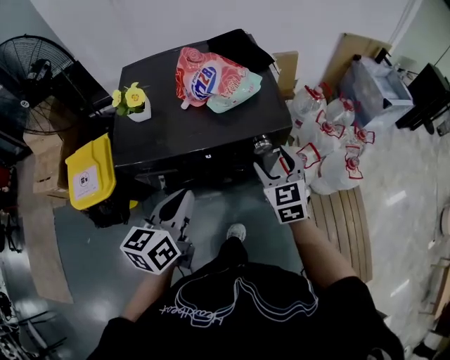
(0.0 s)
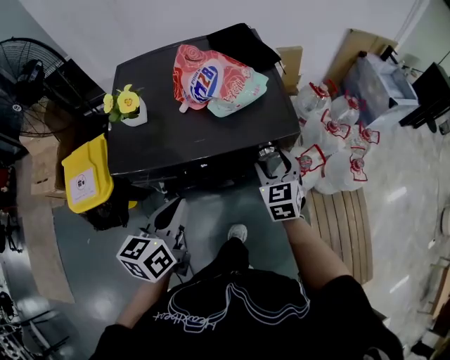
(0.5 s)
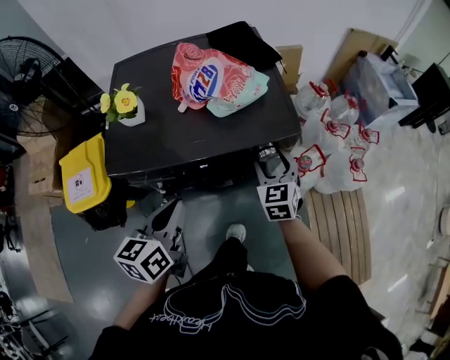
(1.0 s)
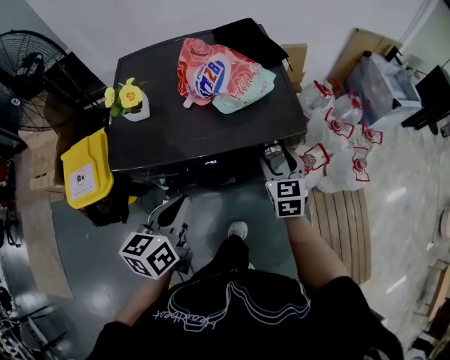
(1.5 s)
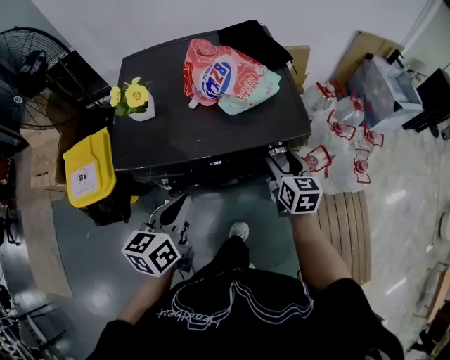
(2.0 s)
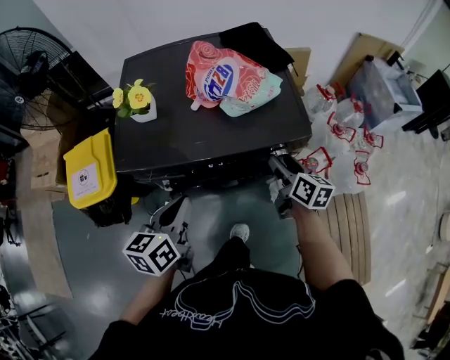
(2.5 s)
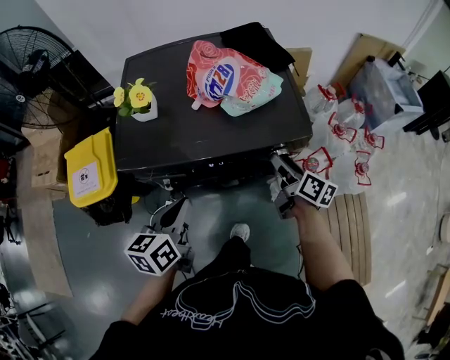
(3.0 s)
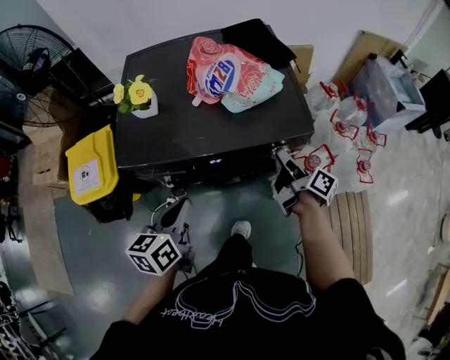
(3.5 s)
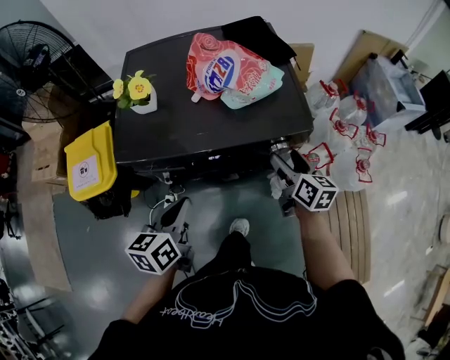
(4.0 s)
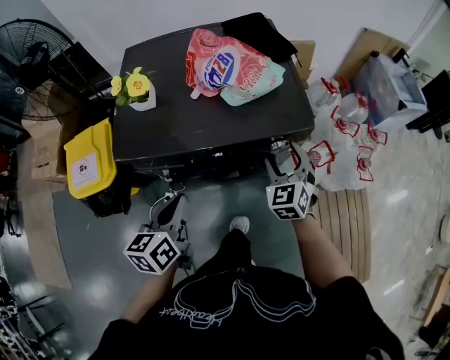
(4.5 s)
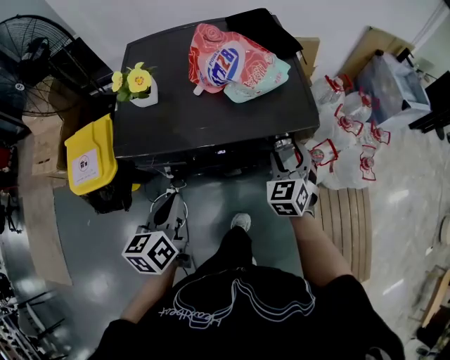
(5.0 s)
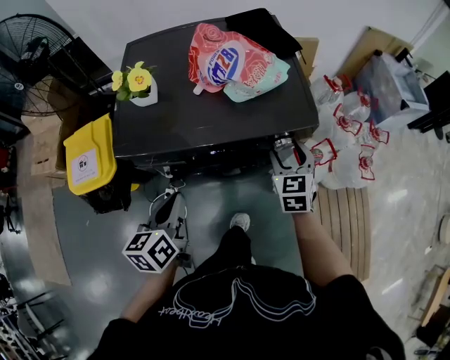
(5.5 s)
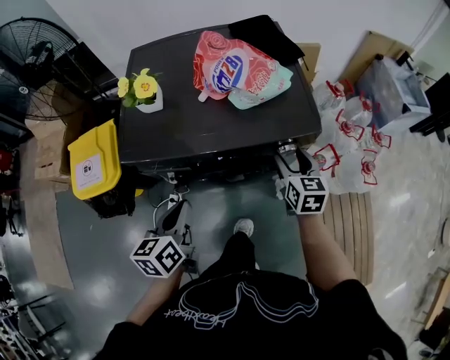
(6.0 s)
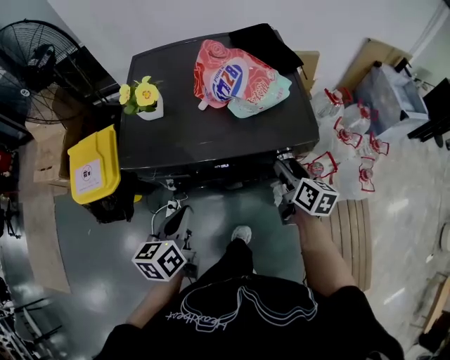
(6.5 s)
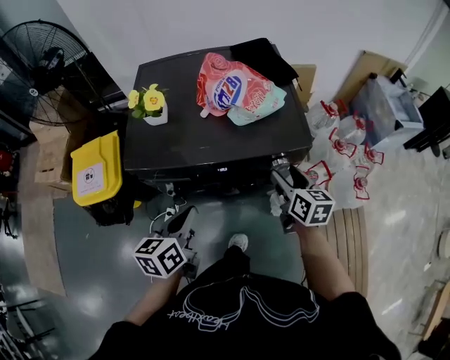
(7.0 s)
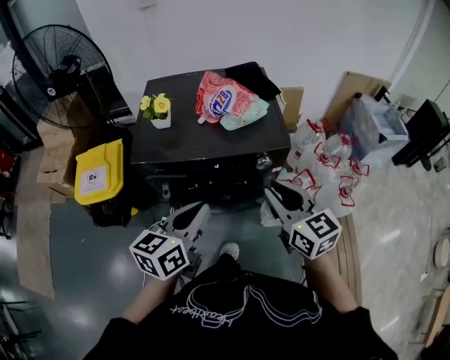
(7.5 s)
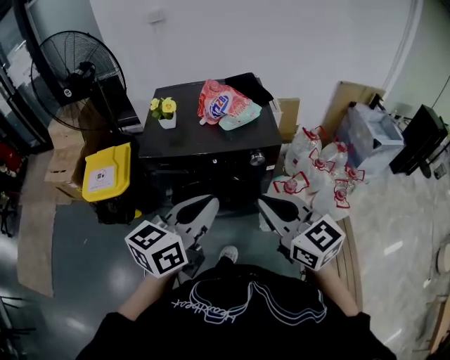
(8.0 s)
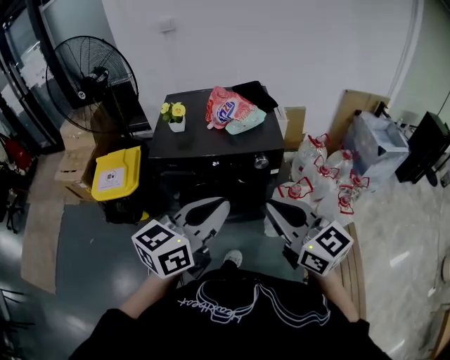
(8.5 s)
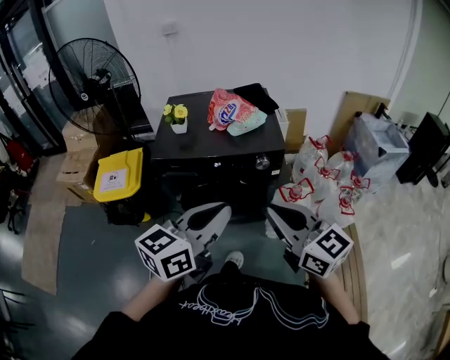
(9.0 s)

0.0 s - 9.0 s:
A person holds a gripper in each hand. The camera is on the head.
0.0 s - 2.0 s: The right gripper travels downward and forward by approximately 10 cm, and turns by roughly 30 degrees. Meanwhile the left gripper goes some 5 cm downward.
2.0 s - 4.5 s: The right gripper rolls counterclockwise, seen from behind, by roughly 40 degrees.
4.5 s - 7.0 s: The right gripper rolls clockwise, seen from behind, by some 50 degrees.
7.0 s - 9.0 s: The left gripper is displaced upward, backward and to the right by approximately 35 cm, and rotates approximately 30 degrees; the right gripper is displaced backward and upward by approximately 40 cm, changes its angle by approximately 40 degrees, and closes up.

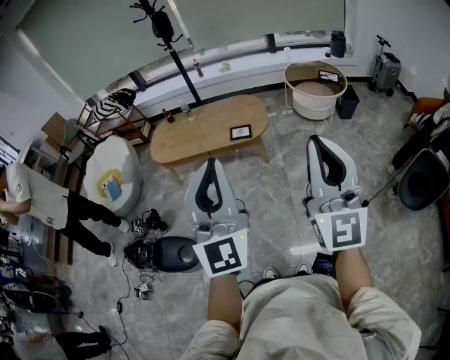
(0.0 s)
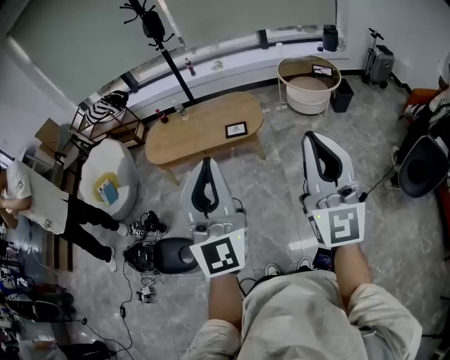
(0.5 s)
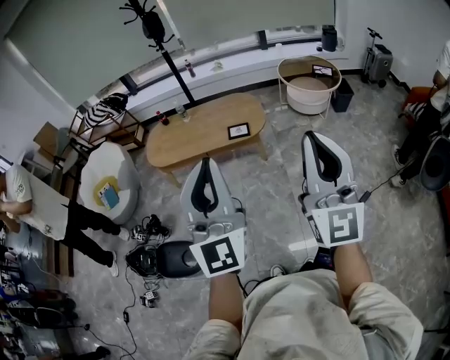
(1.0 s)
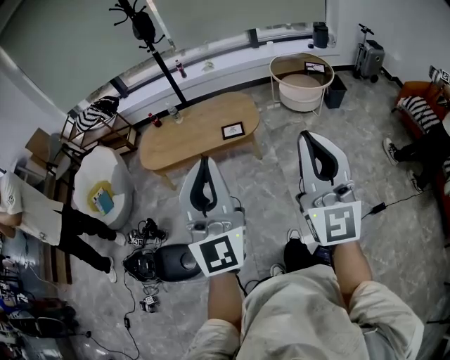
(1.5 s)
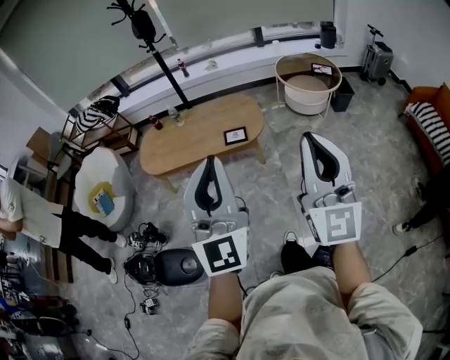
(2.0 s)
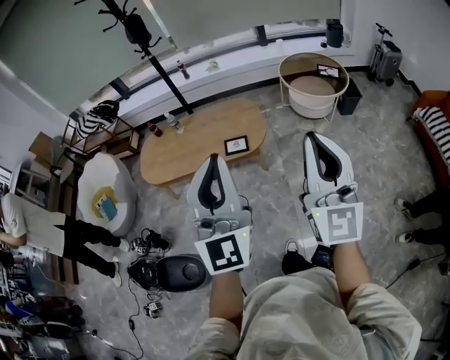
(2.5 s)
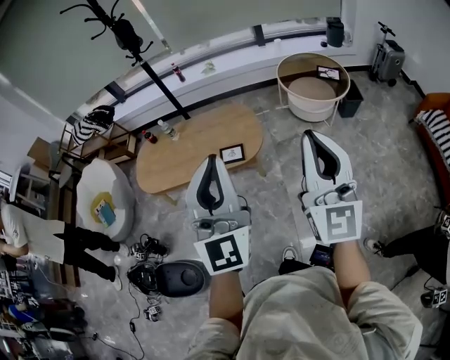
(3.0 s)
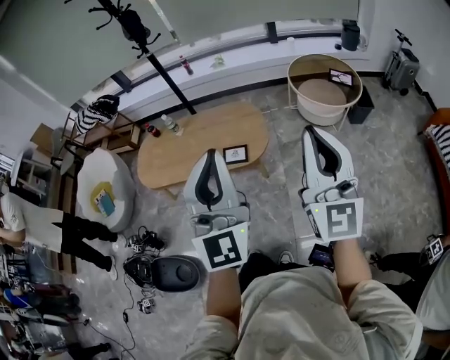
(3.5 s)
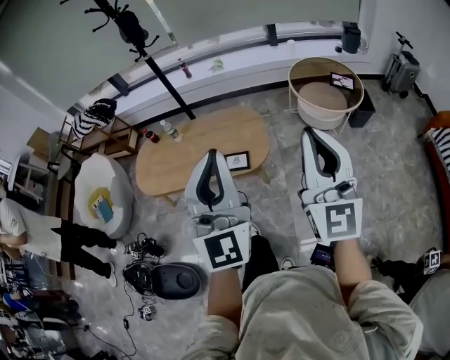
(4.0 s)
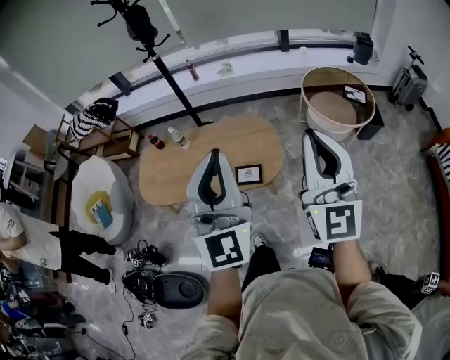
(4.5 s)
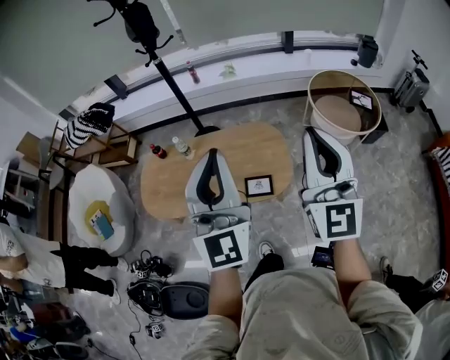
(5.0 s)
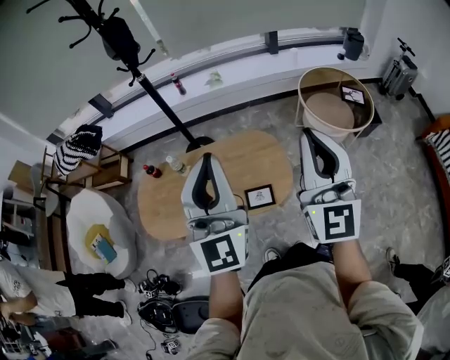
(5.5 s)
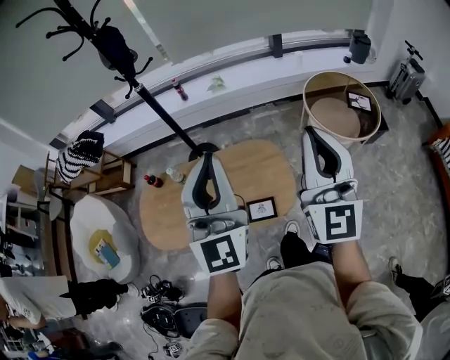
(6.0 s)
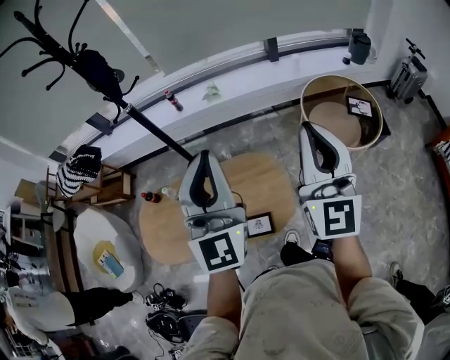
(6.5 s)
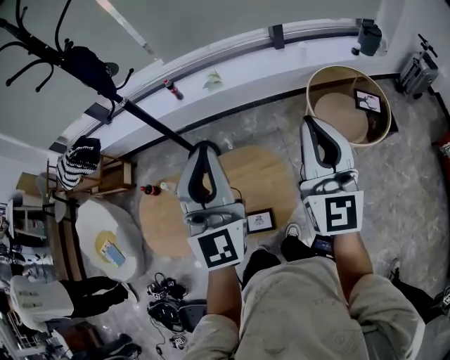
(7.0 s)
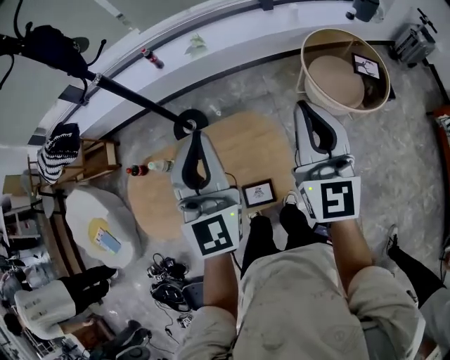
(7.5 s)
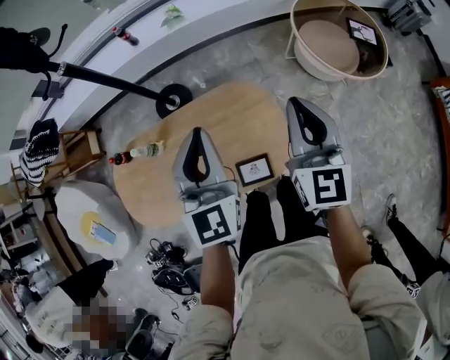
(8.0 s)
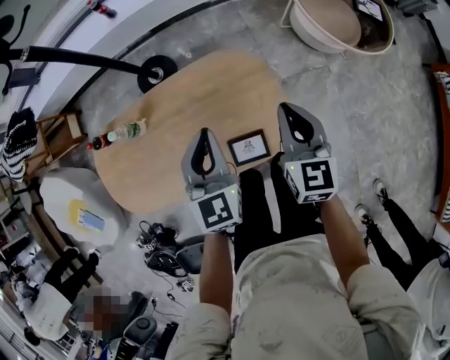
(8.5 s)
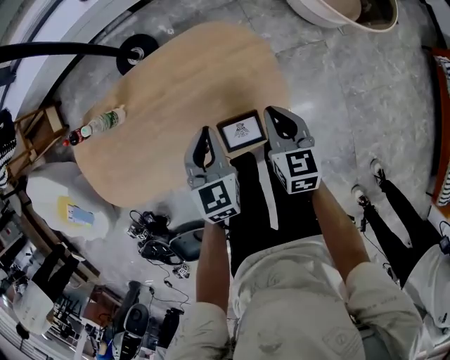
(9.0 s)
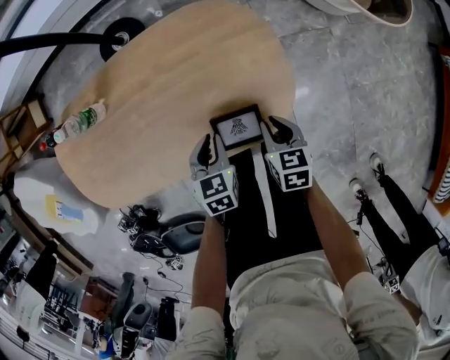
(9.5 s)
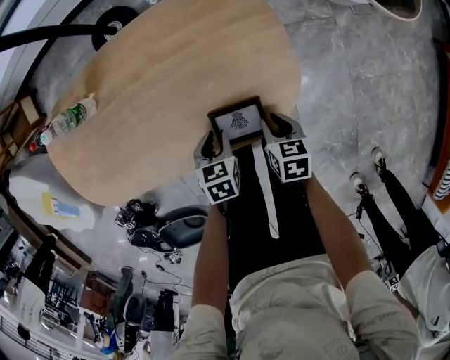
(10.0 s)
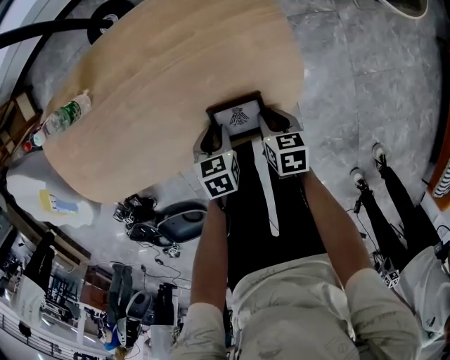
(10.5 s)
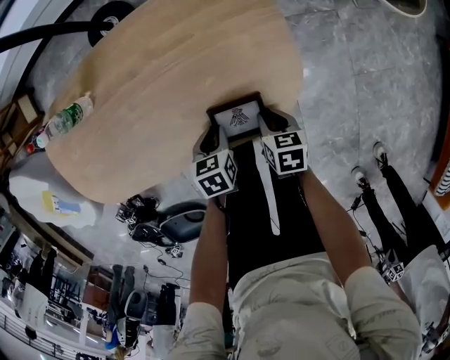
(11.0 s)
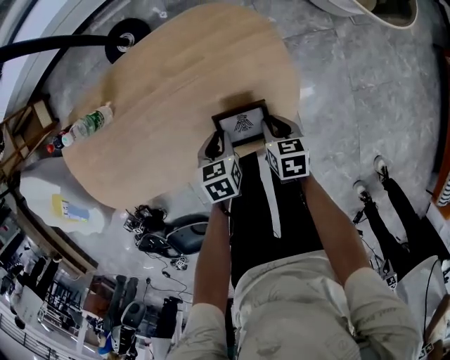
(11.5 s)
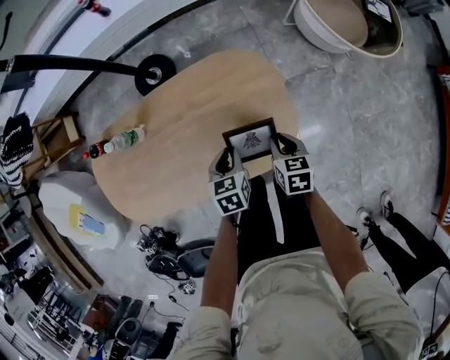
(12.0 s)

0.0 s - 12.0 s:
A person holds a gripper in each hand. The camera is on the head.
0.0 s - 2.0 s: The grippers both shift forward by roughly 10 cm.
2.0 s - 4.0 s: Both grippers travel together forward, approximately 30 cm.
4.0 s - 6.0 s: The right gripper is displaced forward by roughly 30 cm; the left gripper is displaced forward and to the left by some 35 cm.
6.0 s - 8.0 s: Both grippers travel together downward and forward, approximately 30 cm. The left gripper rotates approximately 30 degrees; the right gripper rotates approximately 30 degrees.
8.0 s - 10.0 s: Both grippers travel together downward, some 50 cm. The left gripper angles its fingers downward, by roughly 50 degrees, and opens its fingers; the right gripper points its fingers some 50 degrees further downward, and opens.
10.0 s - 12.0 s: The two grippers go about 15 cm upward and forward.

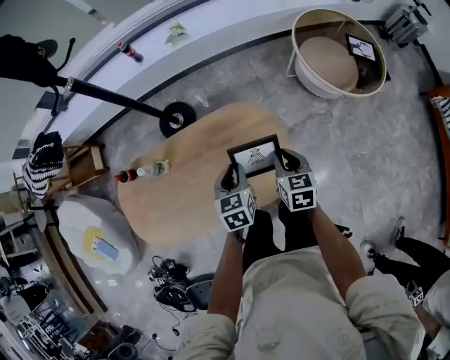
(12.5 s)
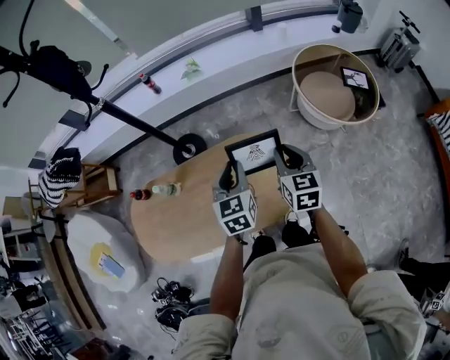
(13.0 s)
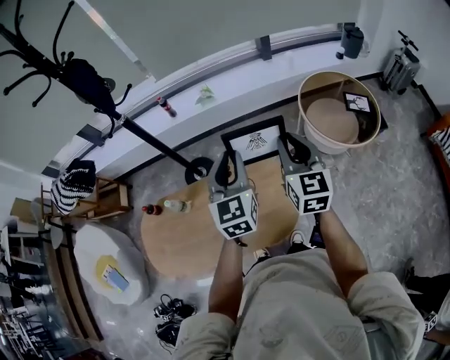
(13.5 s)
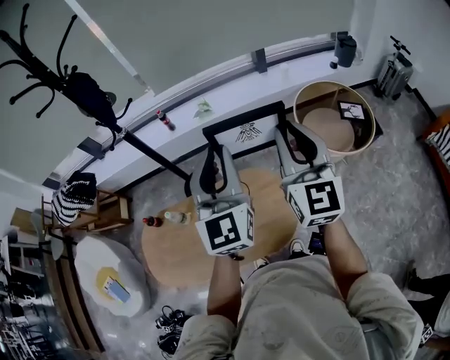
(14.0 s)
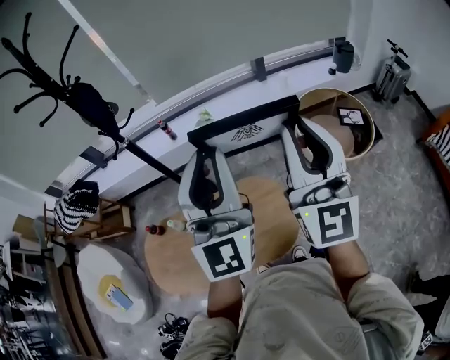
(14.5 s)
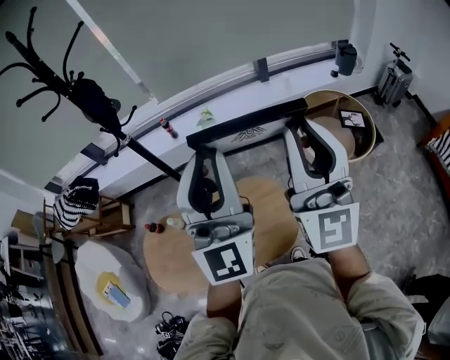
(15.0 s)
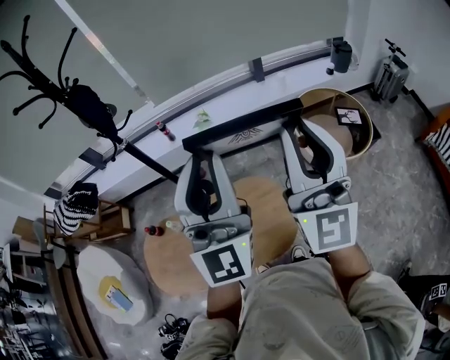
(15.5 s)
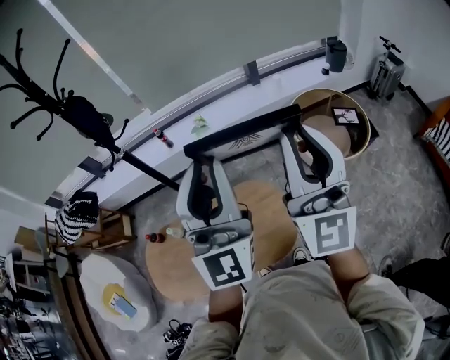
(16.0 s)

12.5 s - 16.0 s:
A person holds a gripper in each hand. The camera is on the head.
12.5 s - 14.5 s: Both grippers move upward, approximately 50 cm. The right gripper points its fingers roughly 70 degrees further upward, while the left gripper tips its fingers upward by roughly 70 degrees.
14.5 s - 16.0 s: The grippers move only a little.

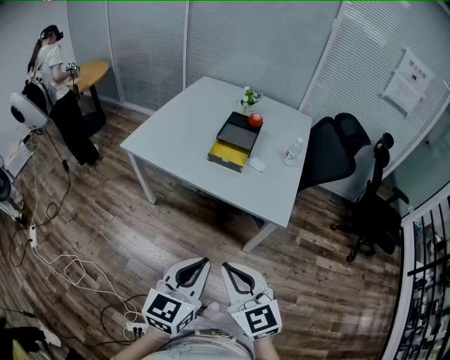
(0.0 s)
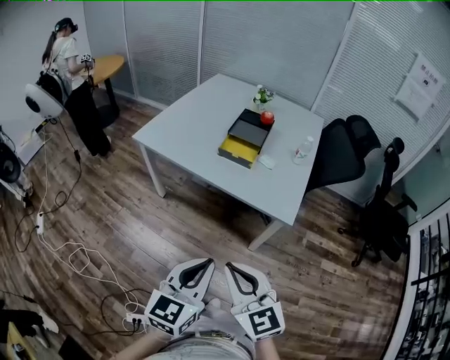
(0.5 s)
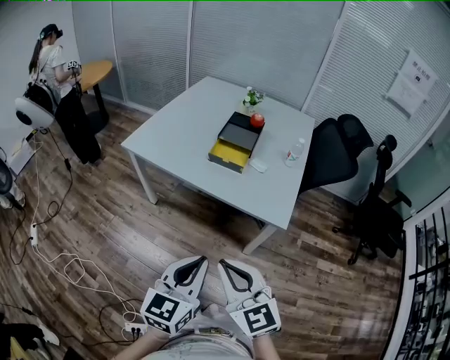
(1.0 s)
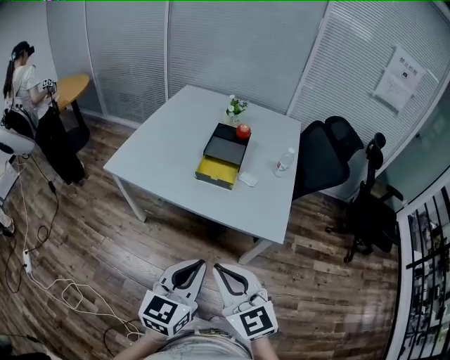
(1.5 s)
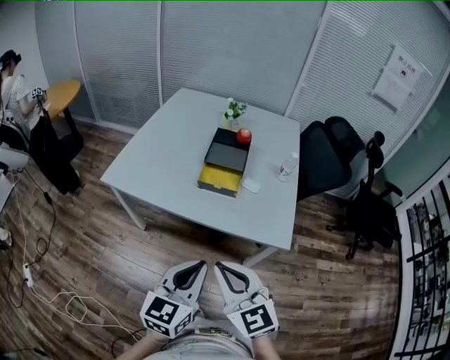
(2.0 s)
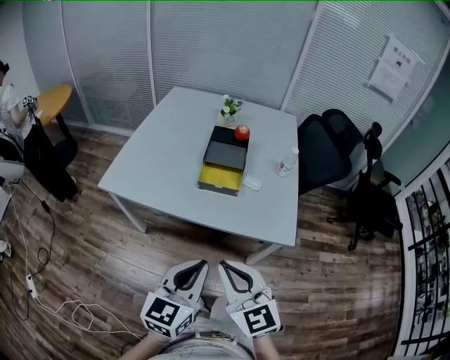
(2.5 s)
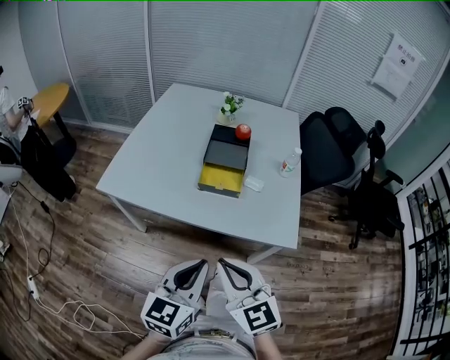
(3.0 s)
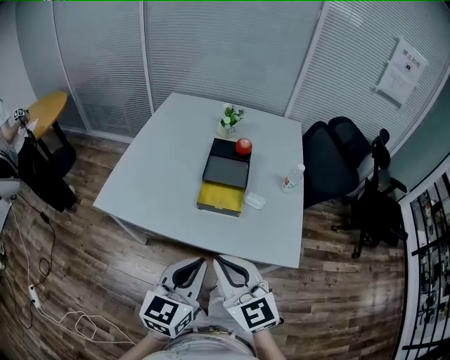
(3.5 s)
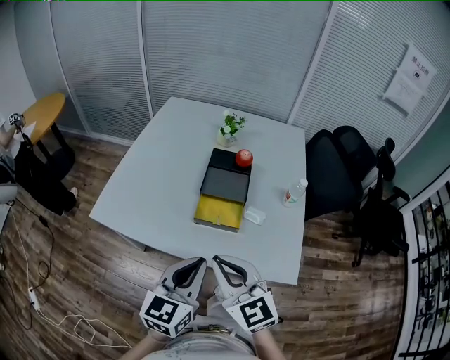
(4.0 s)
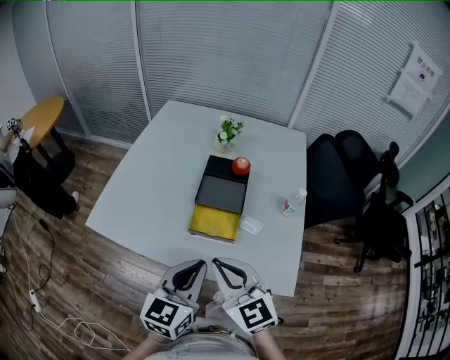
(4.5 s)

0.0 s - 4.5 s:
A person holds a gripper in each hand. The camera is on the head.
0.0 s - 2.0 s: Both grippers move forward, some 15 cm.
2.0 s - 4.5 s: Both grippers travel together forward, roughly 25 cm.
